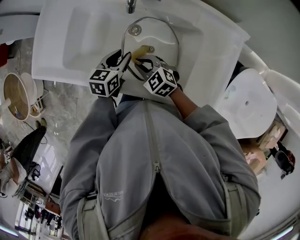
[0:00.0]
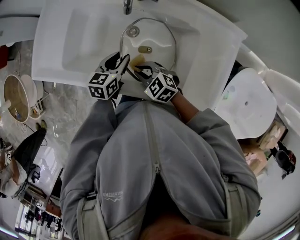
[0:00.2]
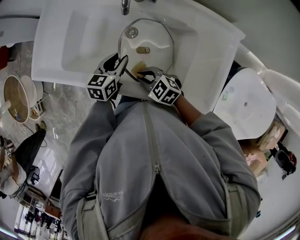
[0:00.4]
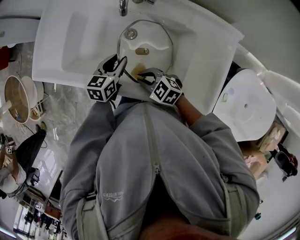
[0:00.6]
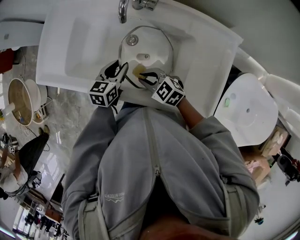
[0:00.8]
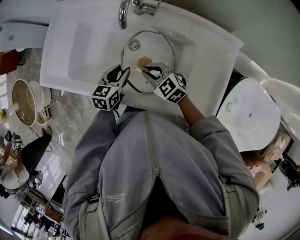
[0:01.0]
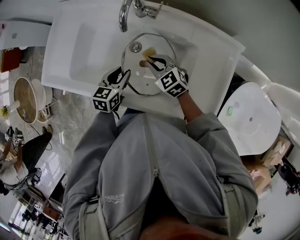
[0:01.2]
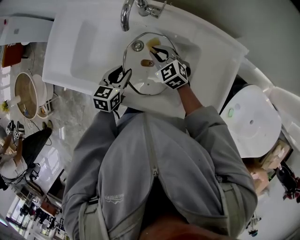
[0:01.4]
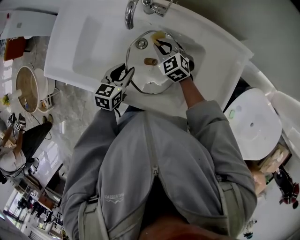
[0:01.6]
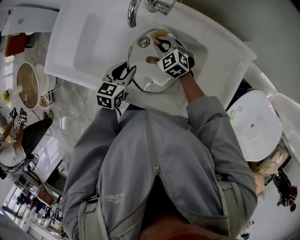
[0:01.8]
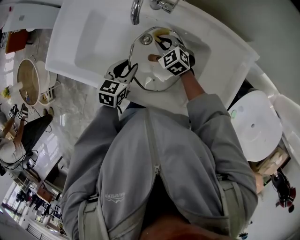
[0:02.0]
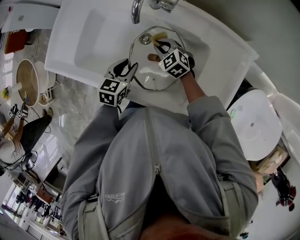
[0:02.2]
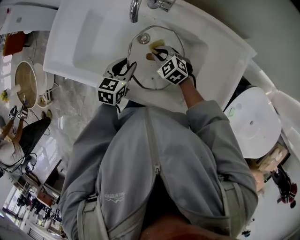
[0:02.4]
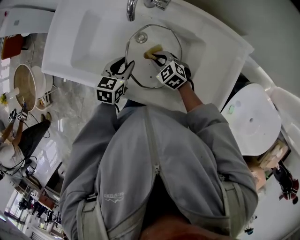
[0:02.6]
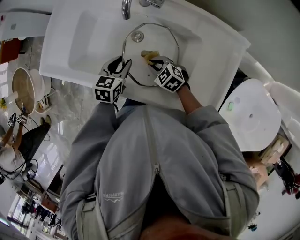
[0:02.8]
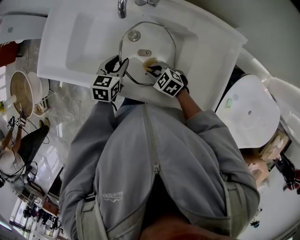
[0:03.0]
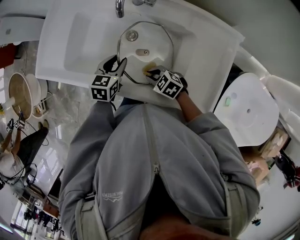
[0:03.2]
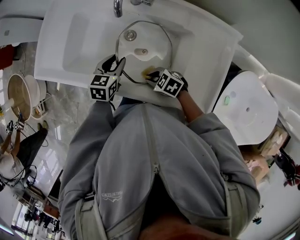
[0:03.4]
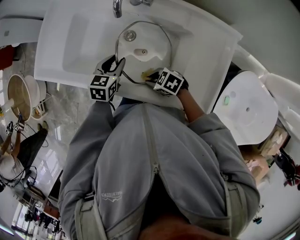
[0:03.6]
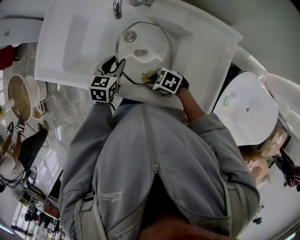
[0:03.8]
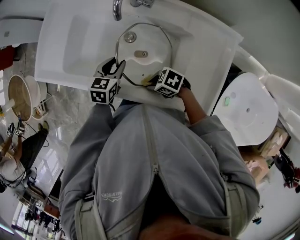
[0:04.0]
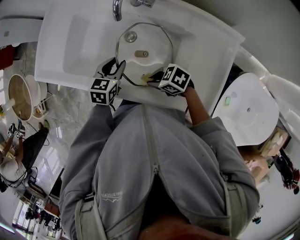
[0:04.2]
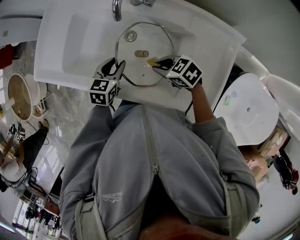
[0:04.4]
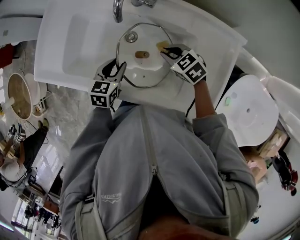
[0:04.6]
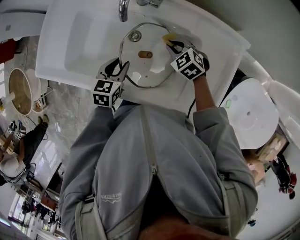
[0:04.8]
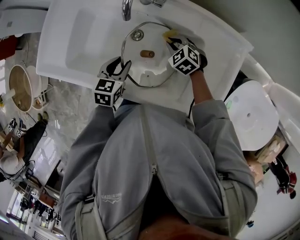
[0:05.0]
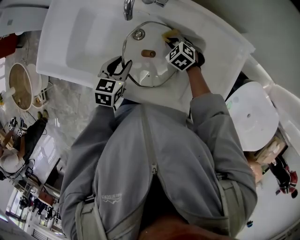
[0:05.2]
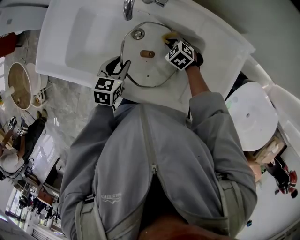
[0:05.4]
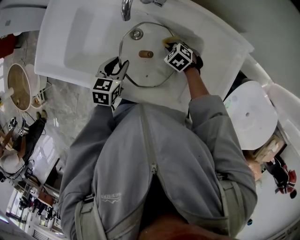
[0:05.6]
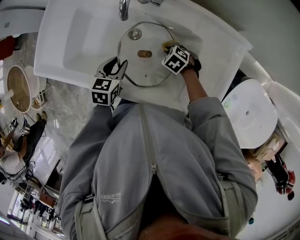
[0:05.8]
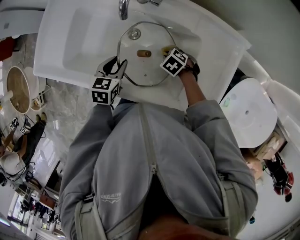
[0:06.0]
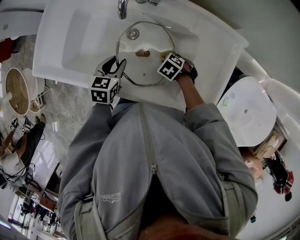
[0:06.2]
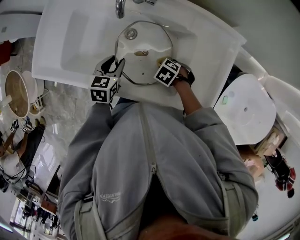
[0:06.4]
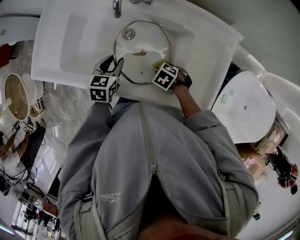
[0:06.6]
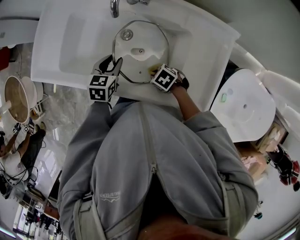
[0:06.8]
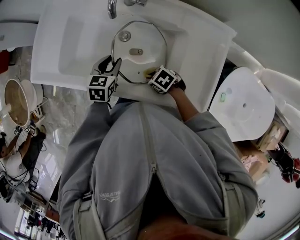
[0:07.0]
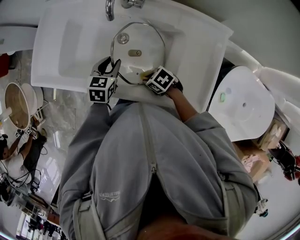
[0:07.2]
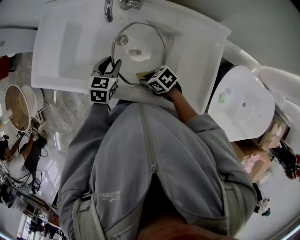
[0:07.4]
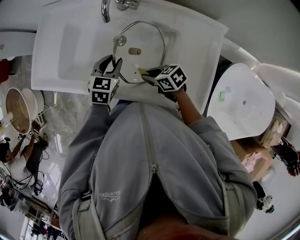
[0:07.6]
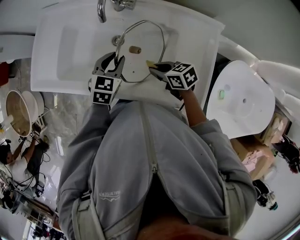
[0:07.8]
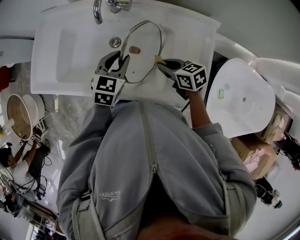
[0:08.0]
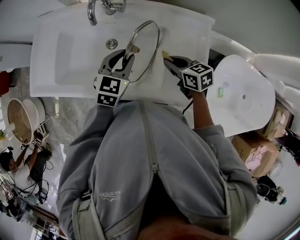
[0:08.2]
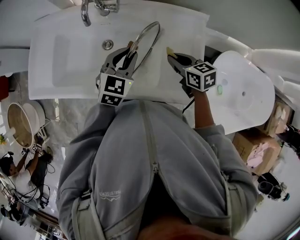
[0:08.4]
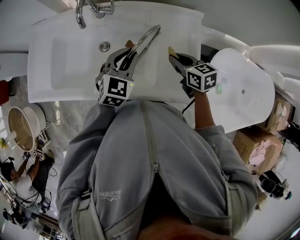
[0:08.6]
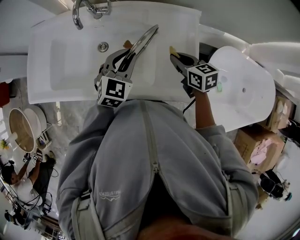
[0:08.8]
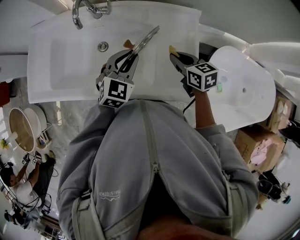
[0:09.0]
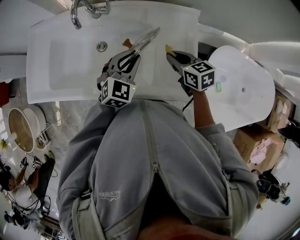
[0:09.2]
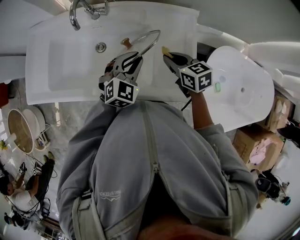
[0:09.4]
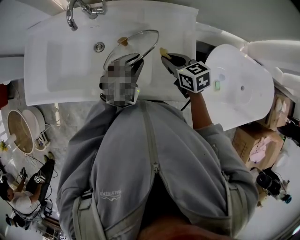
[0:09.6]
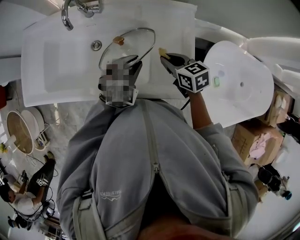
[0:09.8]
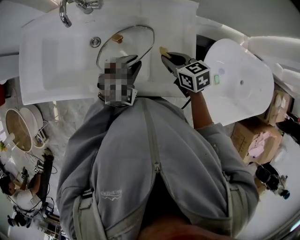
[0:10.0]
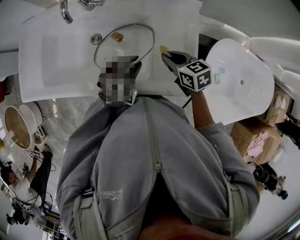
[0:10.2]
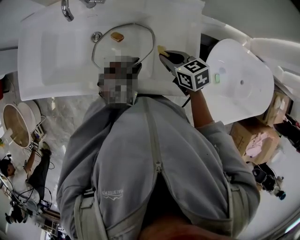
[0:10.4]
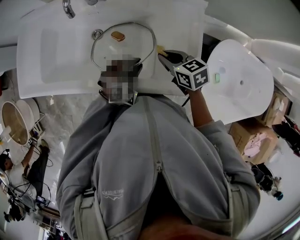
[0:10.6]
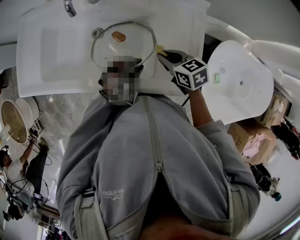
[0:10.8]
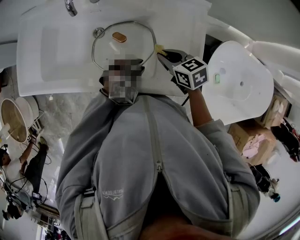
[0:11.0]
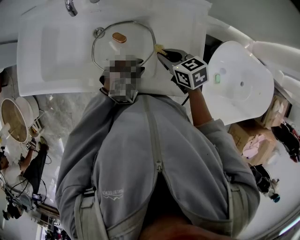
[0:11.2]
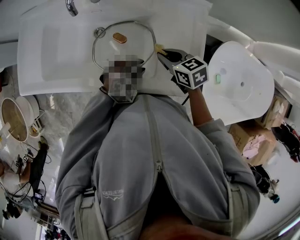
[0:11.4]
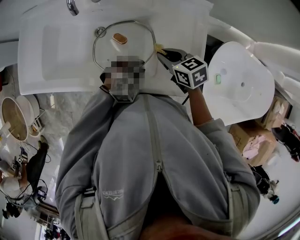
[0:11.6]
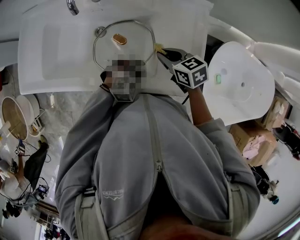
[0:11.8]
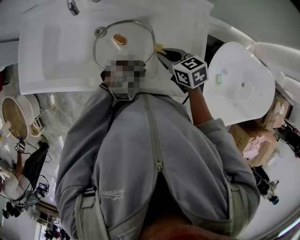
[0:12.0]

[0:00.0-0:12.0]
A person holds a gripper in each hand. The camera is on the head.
0:00.0 to 0:01.6: The right gripper moves forward and to the right, approximately 15 cm.
0:01.6 to 0:03.0: The right gripper goes approximately 15 cm backward, and swivels approximately 30 degrees.
0:03.0 to 0:04.4: The right gripper heads upward, covering roughly 5 cm.
0:04.4 to 0:06.0: The right gripper travels downward by about 10 cm, and rotates about 30 degrees.
0:06.0 to 0:07.6: The right gripper moves upward, about 10 cm, and tips its fingers upward by some 40 degrees; the left gripper shifts by roughly 5 cm.
0:07.6 to 0:09.0: The right gripper changes place by about 25 cm, and swivels approximately 40 degrees, while the left gripper ends up about 20 cm from where it was, and swivels some 30 degrees.
0:09.0 to 0:10.4: The right gripper moves some 5 cm. The left gripper shifts approximately 15 cm downward and backward, and swivels about 30 degrees.
0:10.4 to 0:12.0: The left gripper travels downward by roughly 5 cm, and changes its angle by roughly 30 degrees.

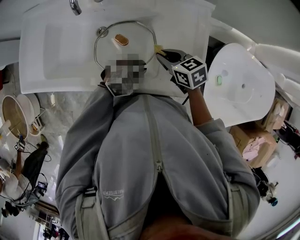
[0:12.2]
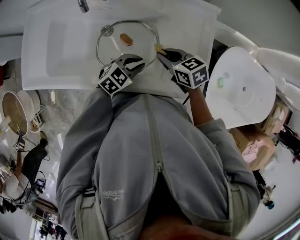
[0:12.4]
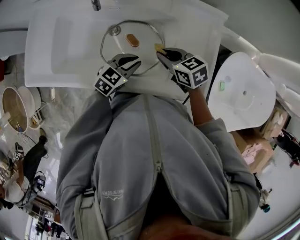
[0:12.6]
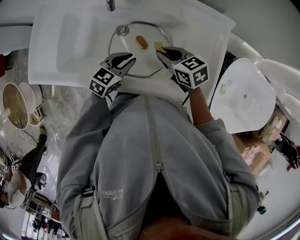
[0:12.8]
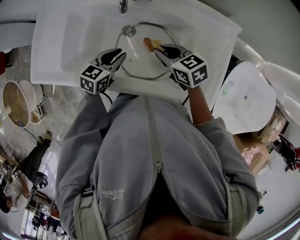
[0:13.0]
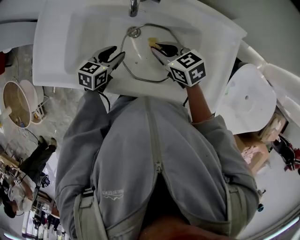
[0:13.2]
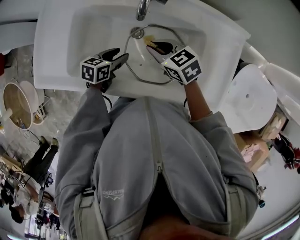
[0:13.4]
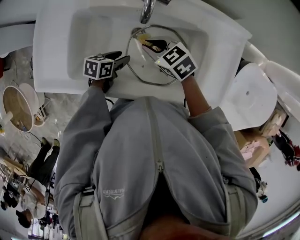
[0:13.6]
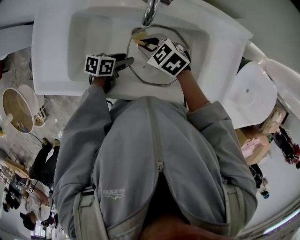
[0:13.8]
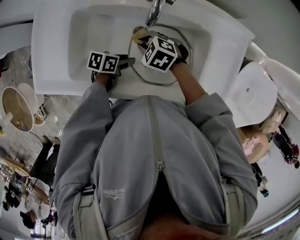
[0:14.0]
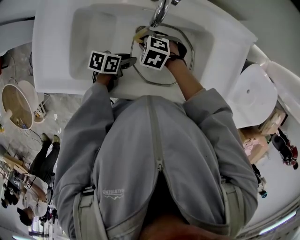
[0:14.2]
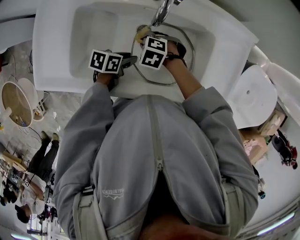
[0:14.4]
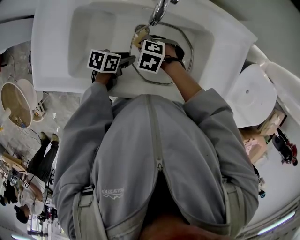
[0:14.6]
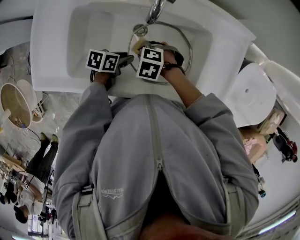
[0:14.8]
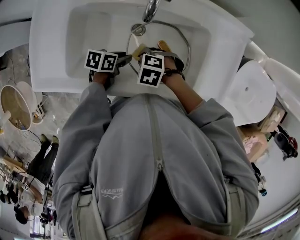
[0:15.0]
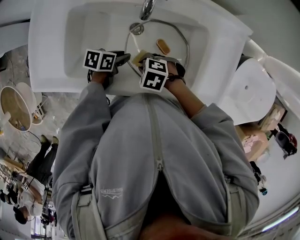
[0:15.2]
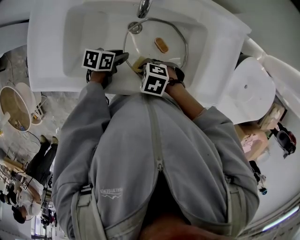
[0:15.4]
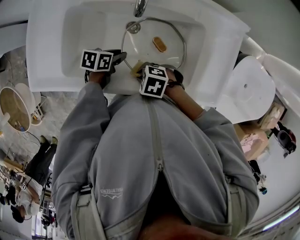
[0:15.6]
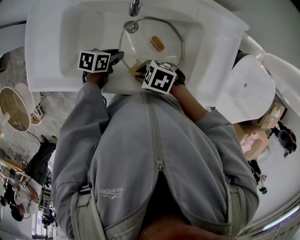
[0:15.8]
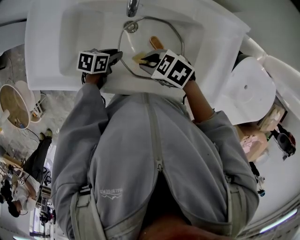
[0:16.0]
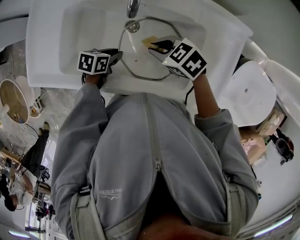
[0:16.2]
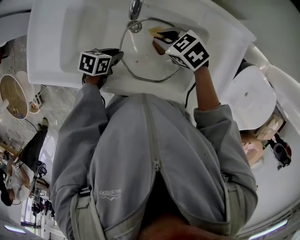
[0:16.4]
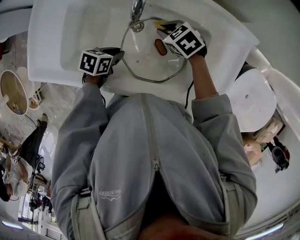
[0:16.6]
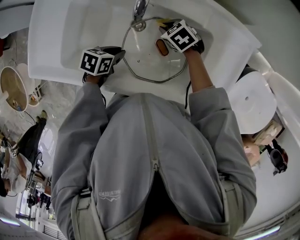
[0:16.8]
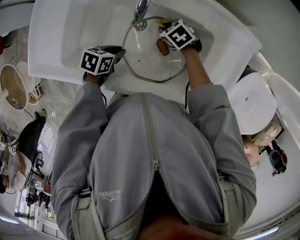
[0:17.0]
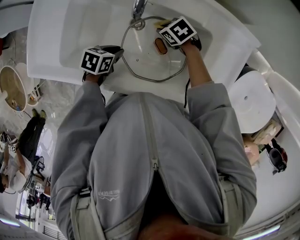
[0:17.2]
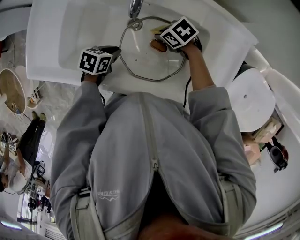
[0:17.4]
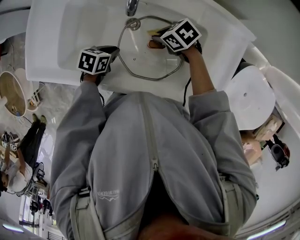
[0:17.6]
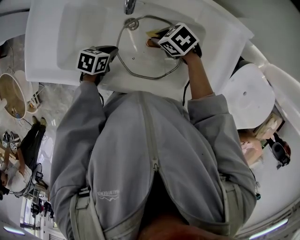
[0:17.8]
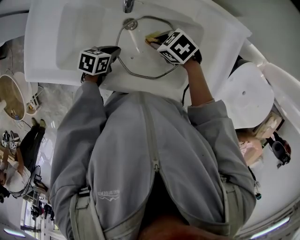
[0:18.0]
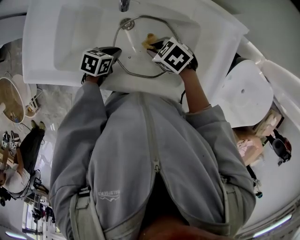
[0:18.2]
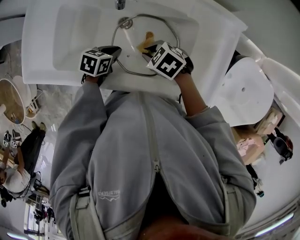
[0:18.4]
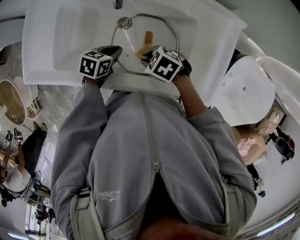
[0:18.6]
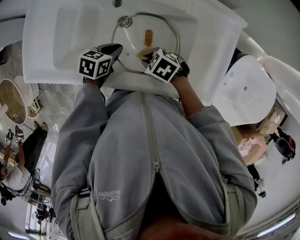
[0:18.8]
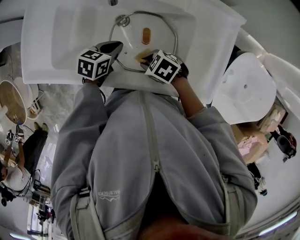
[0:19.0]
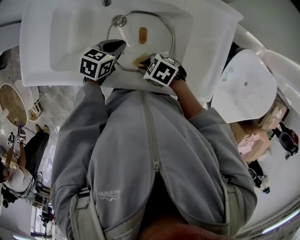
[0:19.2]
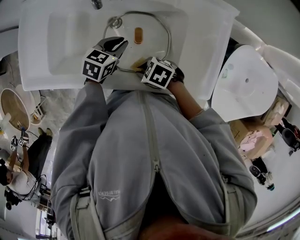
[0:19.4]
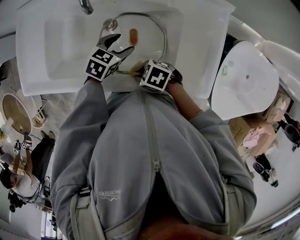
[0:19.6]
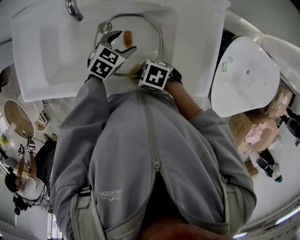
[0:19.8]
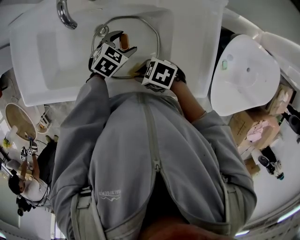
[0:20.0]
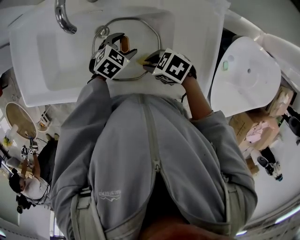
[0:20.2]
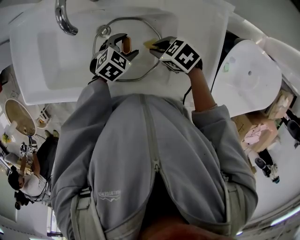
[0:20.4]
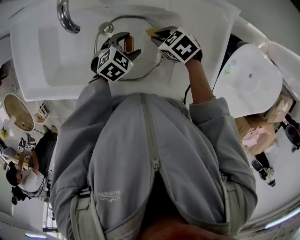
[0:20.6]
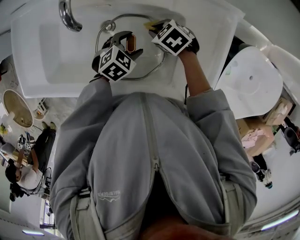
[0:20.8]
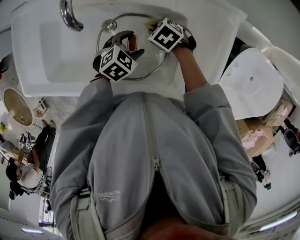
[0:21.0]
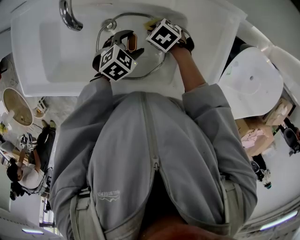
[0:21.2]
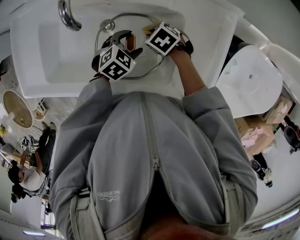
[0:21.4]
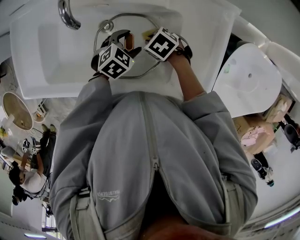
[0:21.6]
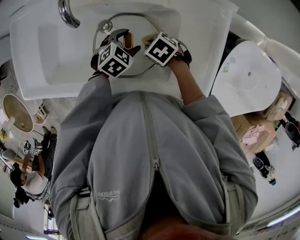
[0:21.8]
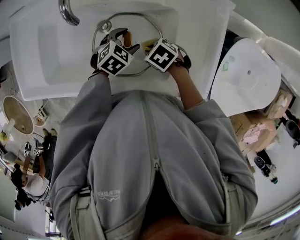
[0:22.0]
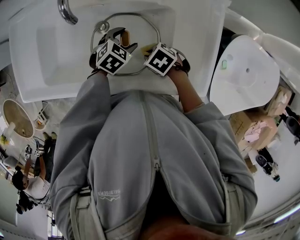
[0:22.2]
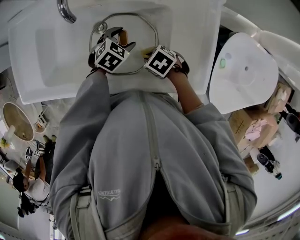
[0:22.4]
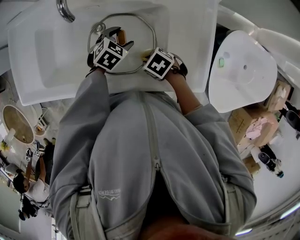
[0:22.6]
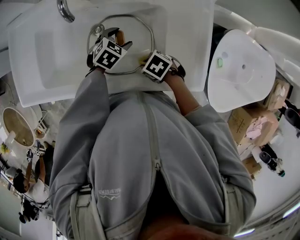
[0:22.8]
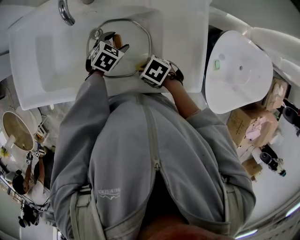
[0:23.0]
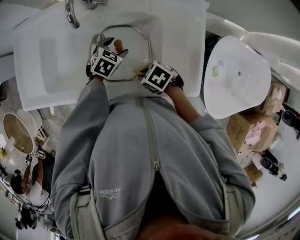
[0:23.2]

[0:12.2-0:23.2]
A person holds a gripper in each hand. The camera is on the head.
0:12.2 to 0:13.8: The right gripper ends up roughly 30 cm from where it was, and swivels roughly 30 degrees, while the left gripper ends up some 30 cm from where it was, twists some 70 degrees counterclockwise, seen from behind, and opens its fingers.
0:13.8 to 0:15.4: The right gripper shifts by about 15 cm, and changes its angle by roughly 30 degrees.
0:15.4 to 0:17.0: The right gripper ends up roughly 20 cm from where it was, and swivels about 20 degrees.
0:17.0 to 0:18.4: The right gripper moves approximately 15 cm.
0:18.4 to 0:20.0: The left gripper shifts by roughly 15 cm, rotates roughly 40 degrees, and opens; the right gripper ends up some 10 cm from where it was, and turns by some 20 degrees.
0:20.0 to 0:21.6: The right gripper moves approximately 15 cm, and rotates roughly 20 degrees.
0:21.6 to 0:23.2: The right gripper ends up about 15 cm from where it was.

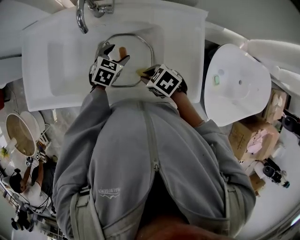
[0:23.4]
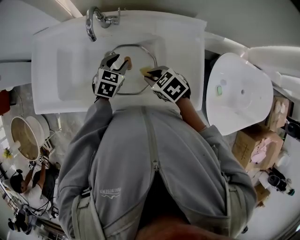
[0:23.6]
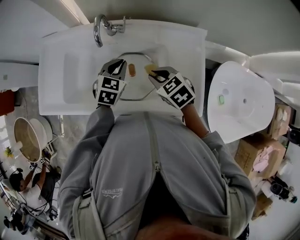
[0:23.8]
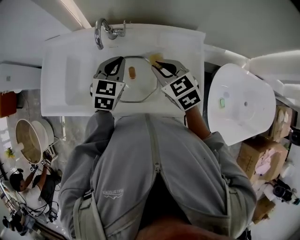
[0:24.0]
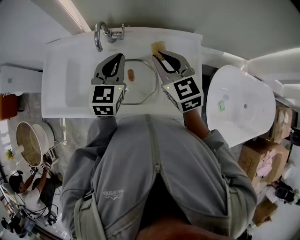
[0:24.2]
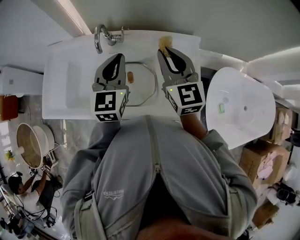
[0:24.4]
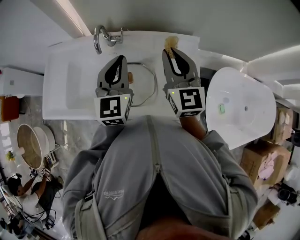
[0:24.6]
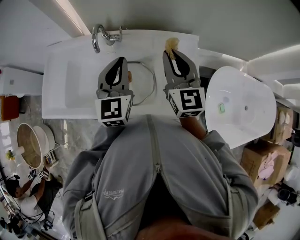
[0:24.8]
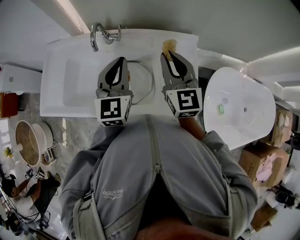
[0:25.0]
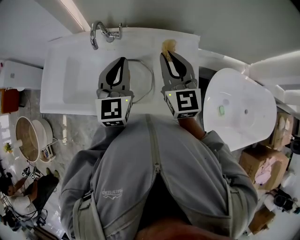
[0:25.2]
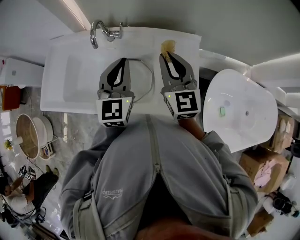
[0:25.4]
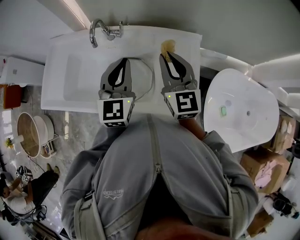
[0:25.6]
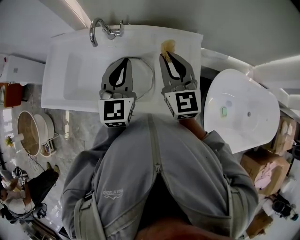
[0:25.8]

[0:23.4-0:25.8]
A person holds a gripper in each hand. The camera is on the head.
0:23.4 to 0:24.6: Both grippers travel together upward, approximately 30 cm. The right gripper points its fingers some 60 degrees further upward. The left gripper angles its fingers upward, by roughly 40 degrees, and closes.
0:24.6 to 0:25.8: The left gripper moves approximately 5 cm.
